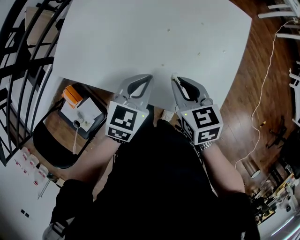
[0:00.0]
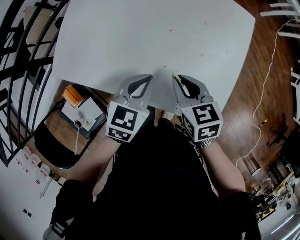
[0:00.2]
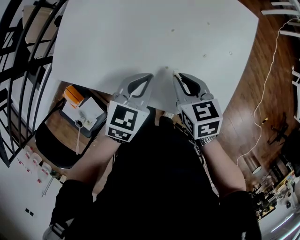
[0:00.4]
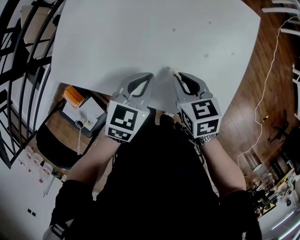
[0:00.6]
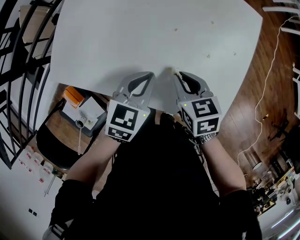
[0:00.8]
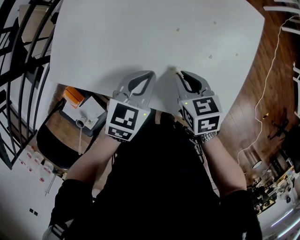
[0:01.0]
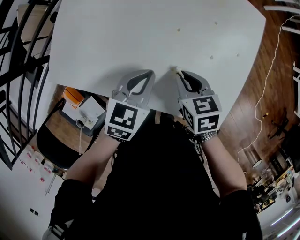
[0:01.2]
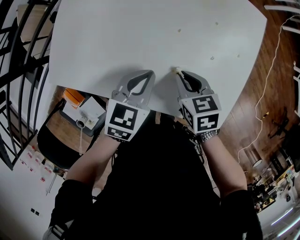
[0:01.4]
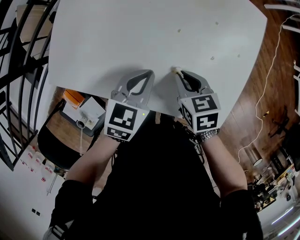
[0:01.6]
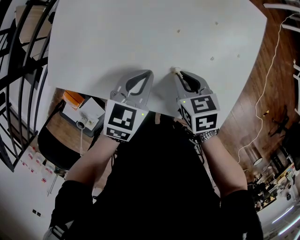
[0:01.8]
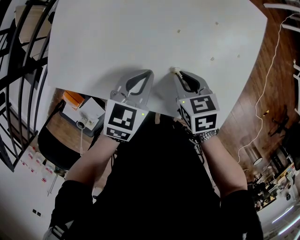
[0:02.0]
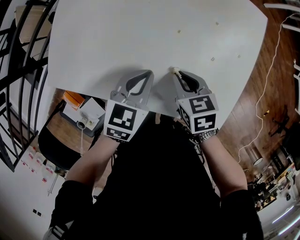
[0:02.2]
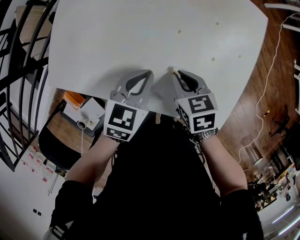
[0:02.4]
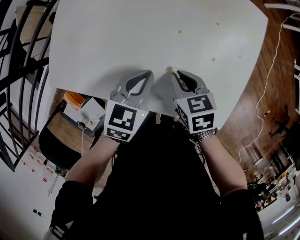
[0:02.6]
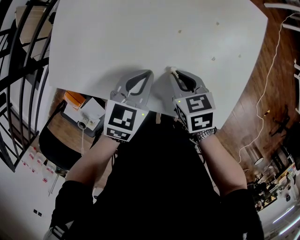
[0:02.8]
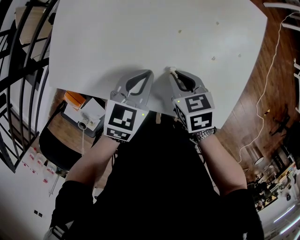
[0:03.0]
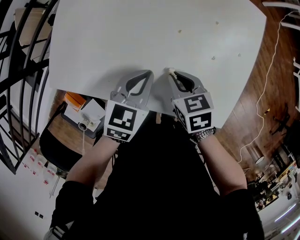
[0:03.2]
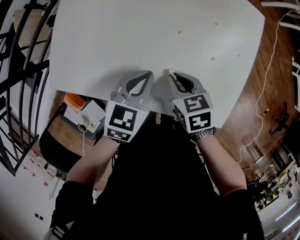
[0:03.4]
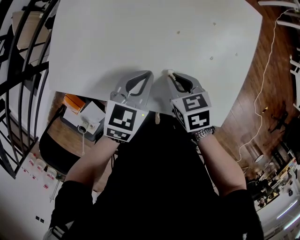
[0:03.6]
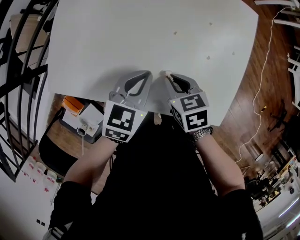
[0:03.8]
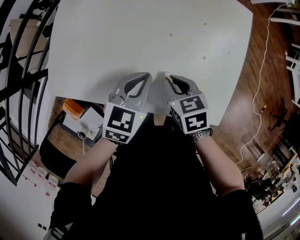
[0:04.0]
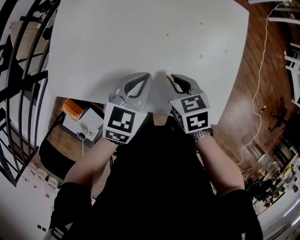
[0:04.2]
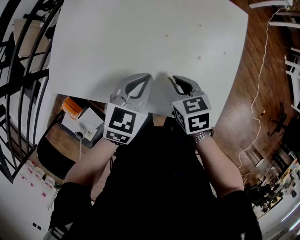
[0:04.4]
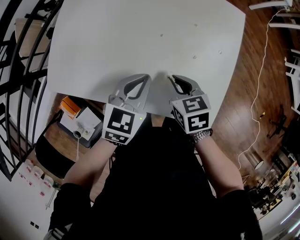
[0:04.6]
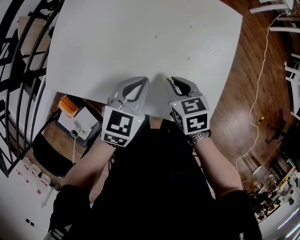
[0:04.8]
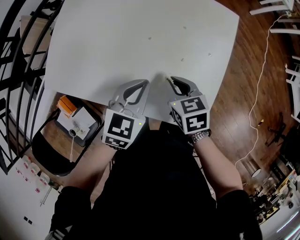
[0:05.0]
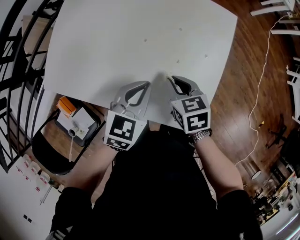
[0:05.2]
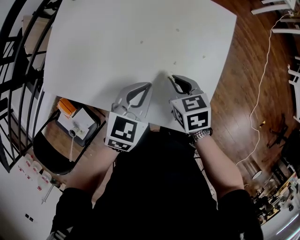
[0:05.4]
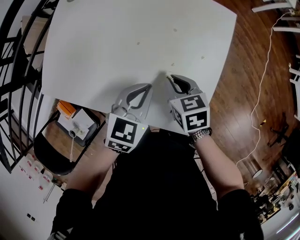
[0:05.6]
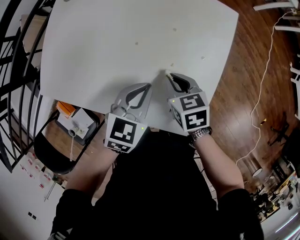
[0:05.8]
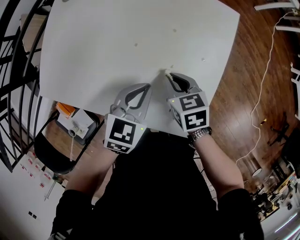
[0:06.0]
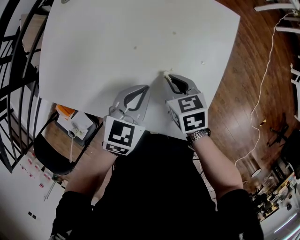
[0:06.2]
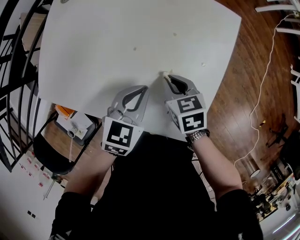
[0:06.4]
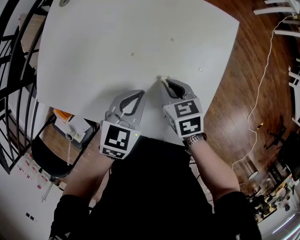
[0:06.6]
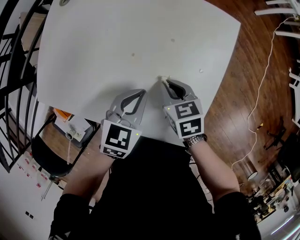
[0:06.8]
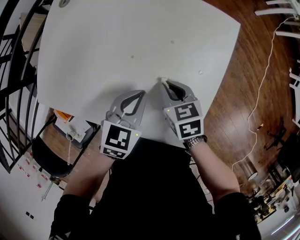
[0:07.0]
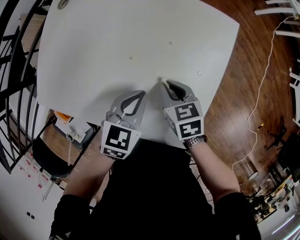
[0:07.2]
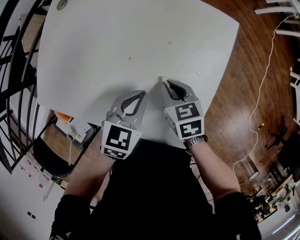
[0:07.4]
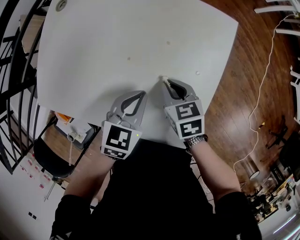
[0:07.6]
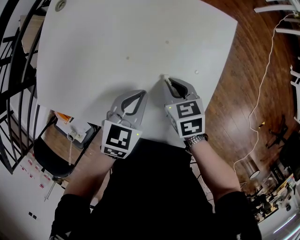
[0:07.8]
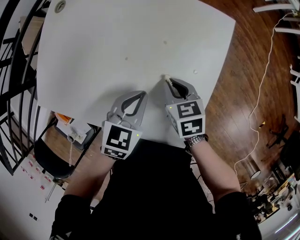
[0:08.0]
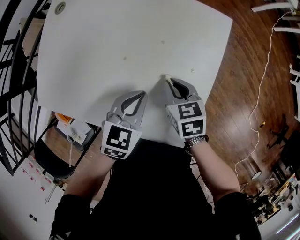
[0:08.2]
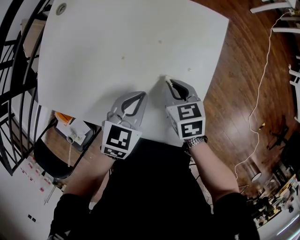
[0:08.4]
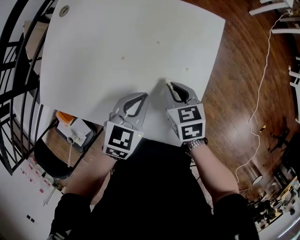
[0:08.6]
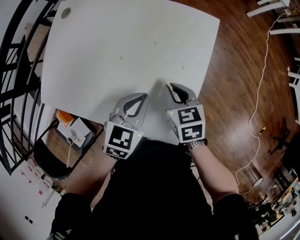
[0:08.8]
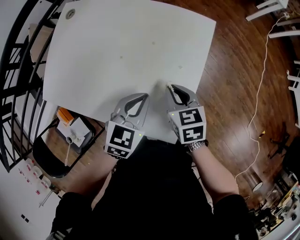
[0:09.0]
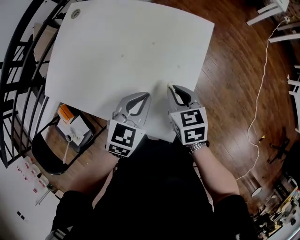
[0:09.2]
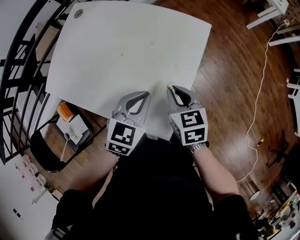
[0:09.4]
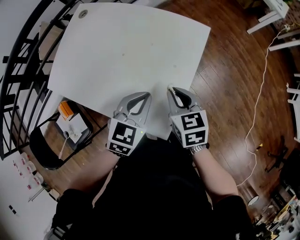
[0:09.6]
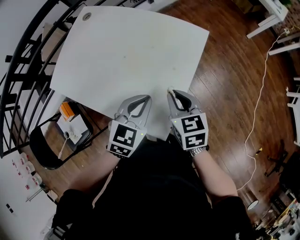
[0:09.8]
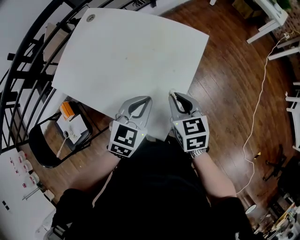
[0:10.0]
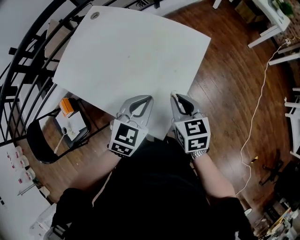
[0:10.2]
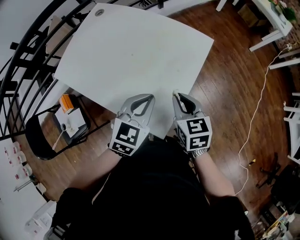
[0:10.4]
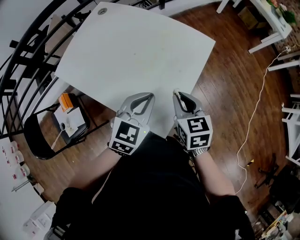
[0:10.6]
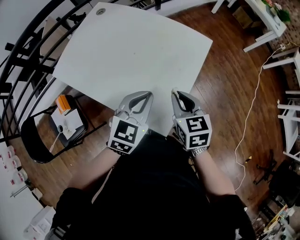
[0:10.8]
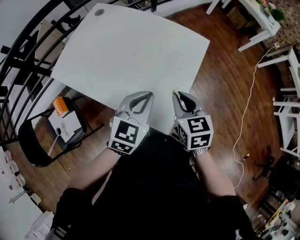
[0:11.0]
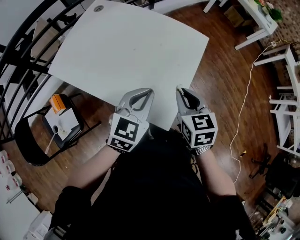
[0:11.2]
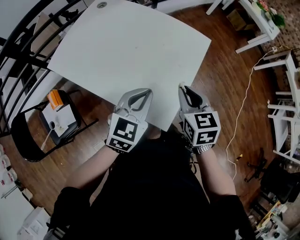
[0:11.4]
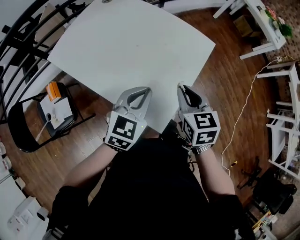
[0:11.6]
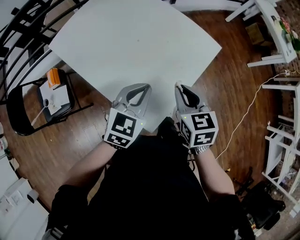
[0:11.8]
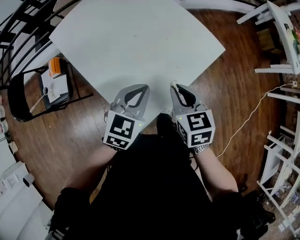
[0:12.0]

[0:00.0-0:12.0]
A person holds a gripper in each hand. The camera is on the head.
0:00.0 to 0:01.6: The left gripper shifts by approximately 5 cm, while the right gripper shifts about 10 cm downward.
0:01.6 to 0:04.4: There are only small adjustments of the grippers.
0:04.4 to 0:06.0: Both grippers move to the right, roughly 10 cm.
0:06.0 to 0:07.6: There are only small adjustments of the grippers.
0:07.6 to 0:09.0: The two grippers go some 10 cm to the right and upward.
0:09.0 to 0:10.4: Both grippers move upward and backward, roughly 10 cm.
0:10.4 to 0:12.0: The right gripper changes its angle by about 20 degrees.

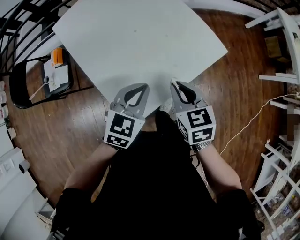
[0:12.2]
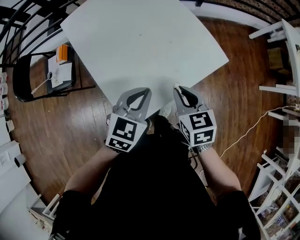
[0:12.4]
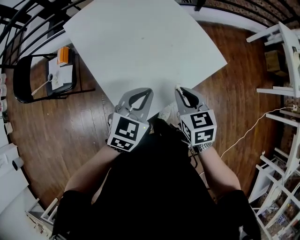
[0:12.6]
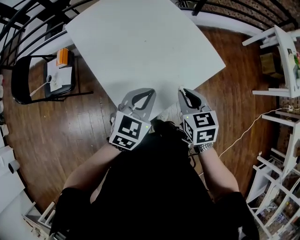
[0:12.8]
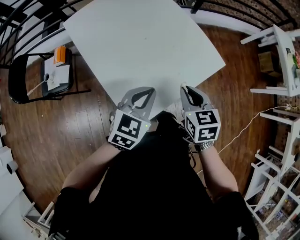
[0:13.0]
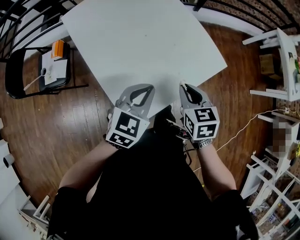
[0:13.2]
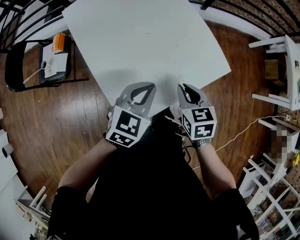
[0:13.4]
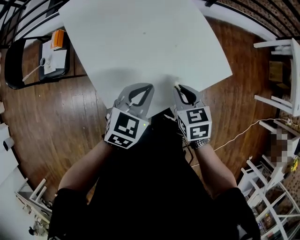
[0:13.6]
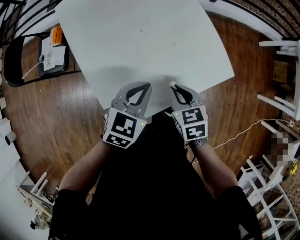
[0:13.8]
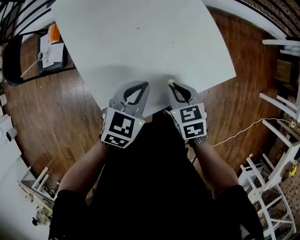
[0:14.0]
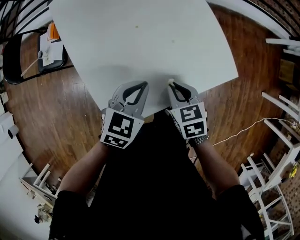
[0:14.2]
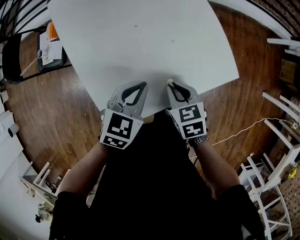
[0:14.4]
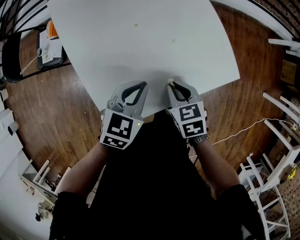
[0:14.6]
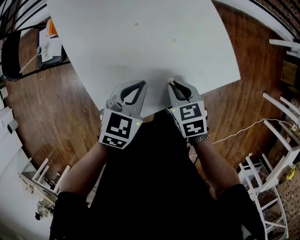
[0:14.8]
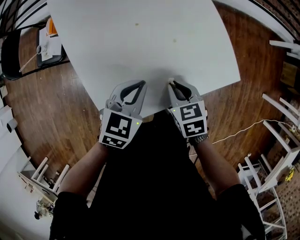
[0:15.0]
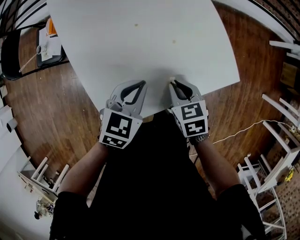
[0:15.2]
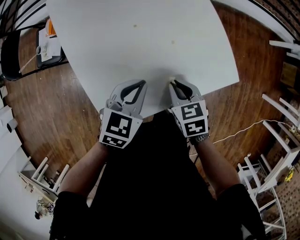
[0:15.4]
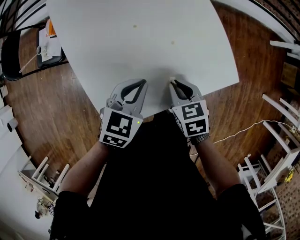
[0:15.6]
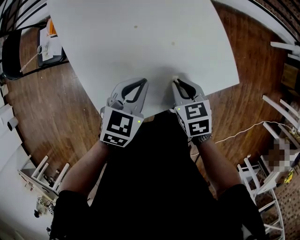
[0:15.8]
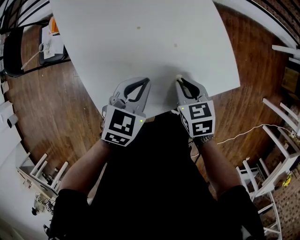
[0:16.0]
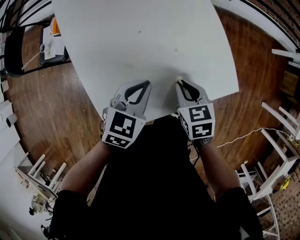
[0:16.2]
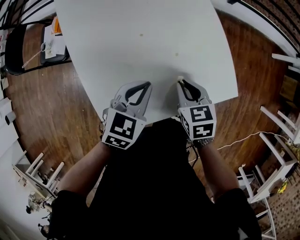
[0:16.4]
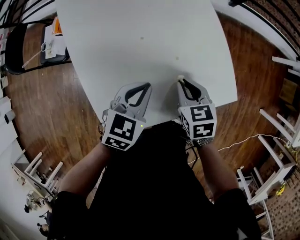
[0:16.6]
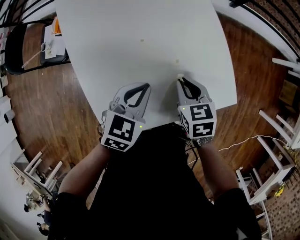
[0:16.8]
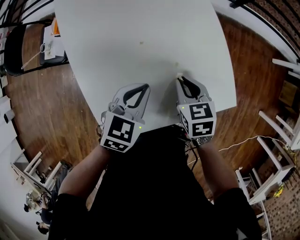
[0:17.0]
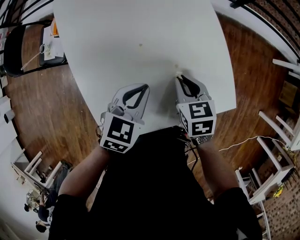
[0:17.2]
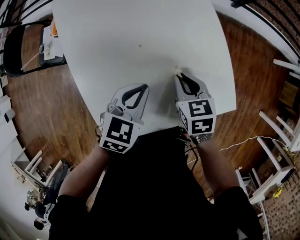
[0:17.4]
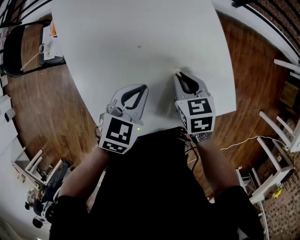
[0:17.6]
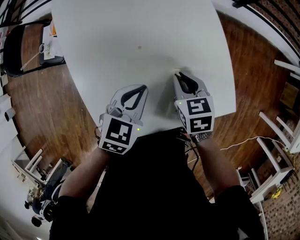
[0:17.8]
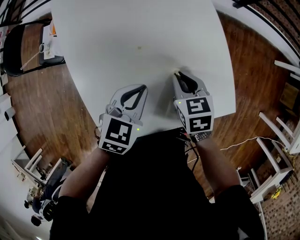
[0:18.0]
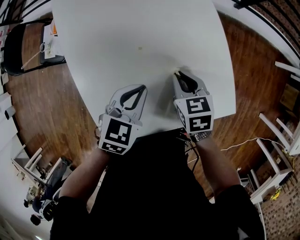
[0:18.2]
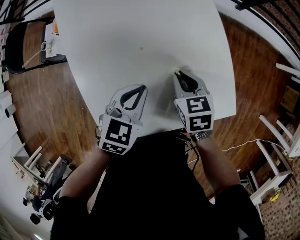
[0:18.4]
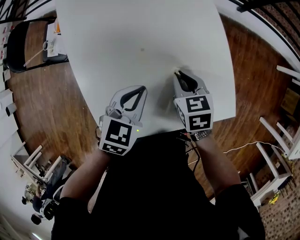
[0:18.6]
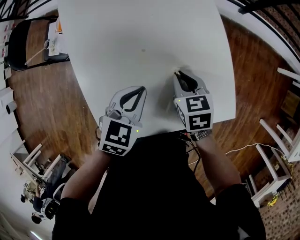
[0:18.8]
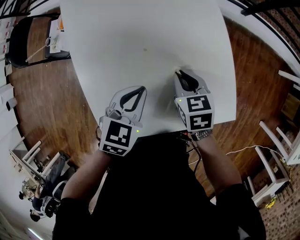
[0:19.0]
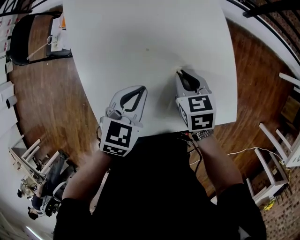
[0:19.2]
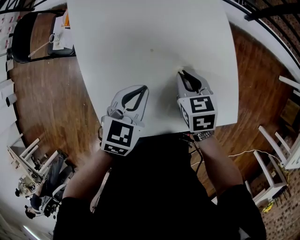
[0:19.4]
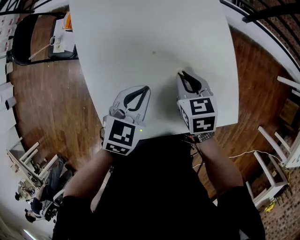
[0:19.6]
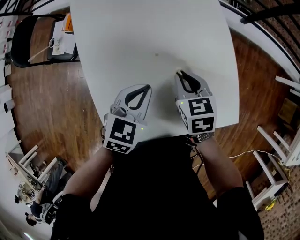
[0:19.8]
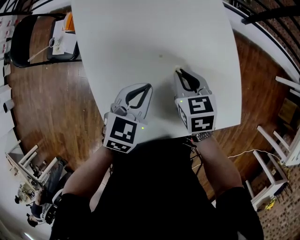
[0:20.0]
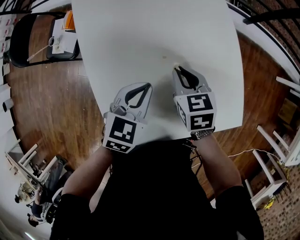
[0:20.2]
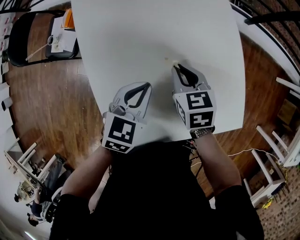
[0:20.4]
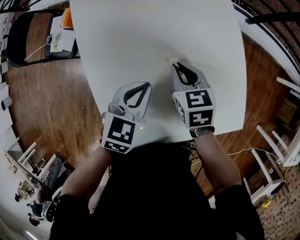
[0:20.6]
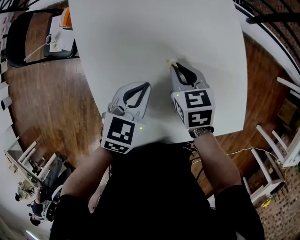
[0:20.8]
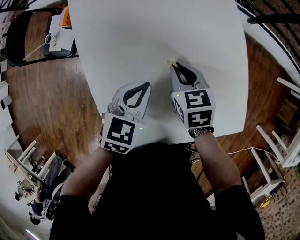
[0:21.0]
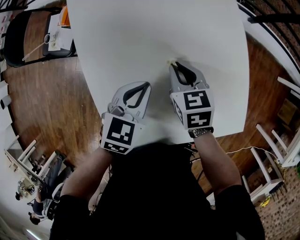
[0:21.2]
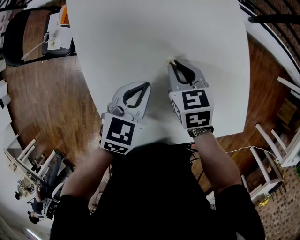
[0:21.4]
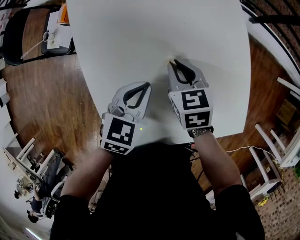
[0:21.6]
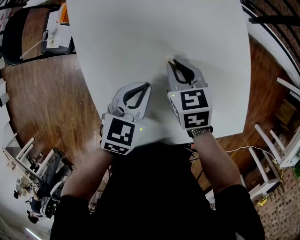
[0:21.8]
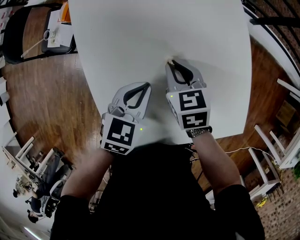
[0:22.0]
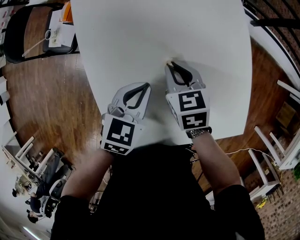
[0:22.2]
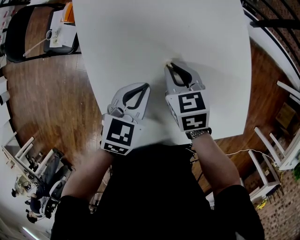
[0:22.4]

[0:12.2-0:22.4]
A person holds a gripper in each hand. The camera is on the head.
0:12.2 to 0:13.6: The right gripper shifts some 5 cm downward.
0:13.6 to 0:15.2: The grippers both shift downward by roughly 5 cm.
0:15.2 to 0:16.6: The right gripper travels forward by about 5 cm.
0:16.6 to 0:18.0: The right gripper is displaced forward by roughly 5 cm.
0:18.0 to 0:19.4: The grippers stay close to where they were, moving slightly.
0:19.4 to 0:21.0: The left gripper shifts roughly 5 cm to the left. Meanwhile the right gripper heads to the left and forward, covering about 10 cm.
0:21.0 to 0:22.4: The grippers stay close to where they were, moving slightly.

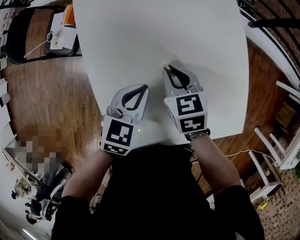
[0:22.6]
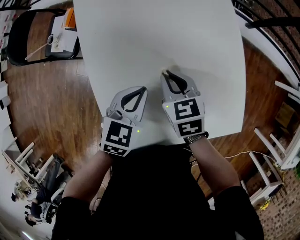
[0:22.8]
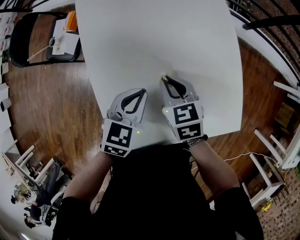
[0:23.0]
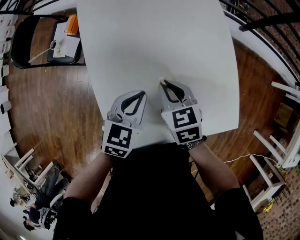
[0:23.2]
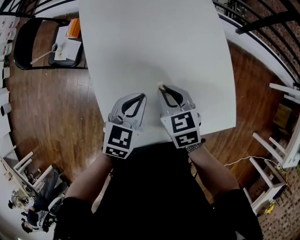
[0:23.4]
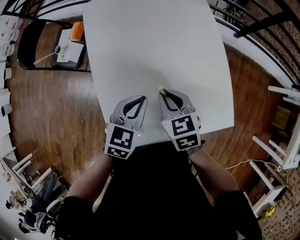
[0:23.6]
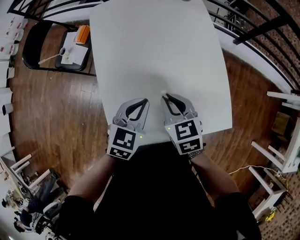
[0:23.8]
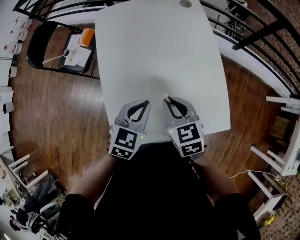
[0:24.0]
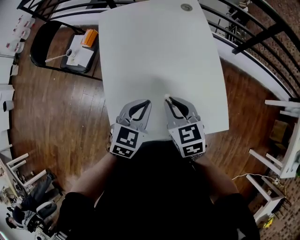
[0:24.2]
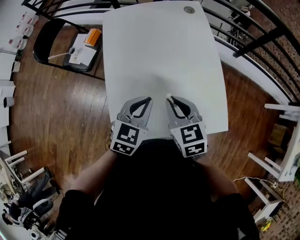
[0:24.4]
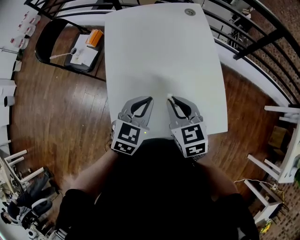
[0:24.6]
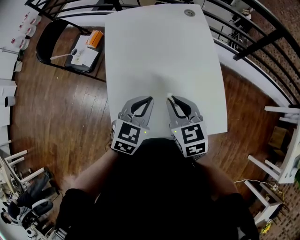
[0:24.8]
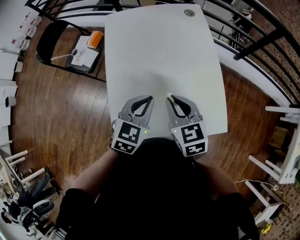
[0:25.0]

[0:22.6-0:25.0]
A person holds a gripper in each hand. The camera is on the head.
0:22.6 to 0:23.8: The left gripper travels backward and upward by about 10 cm. Meanwhile the right gripper shifts roughly 15 cm backward and upward.
0:23.8 to 0:25.0: The right gripper goes some 5 cm upward.
